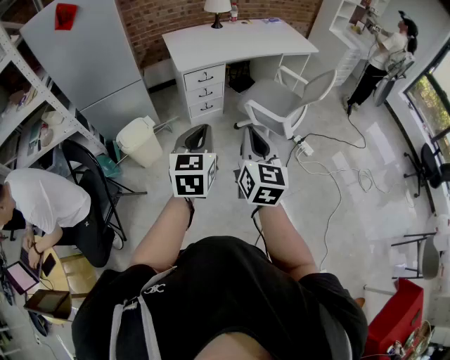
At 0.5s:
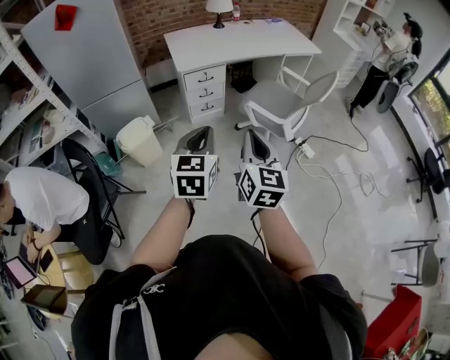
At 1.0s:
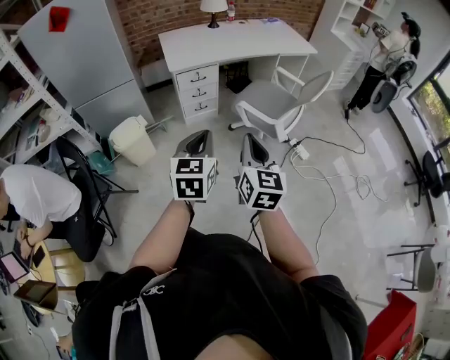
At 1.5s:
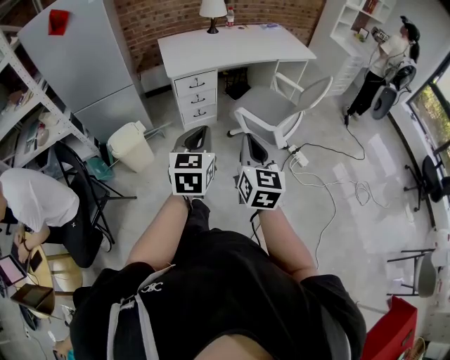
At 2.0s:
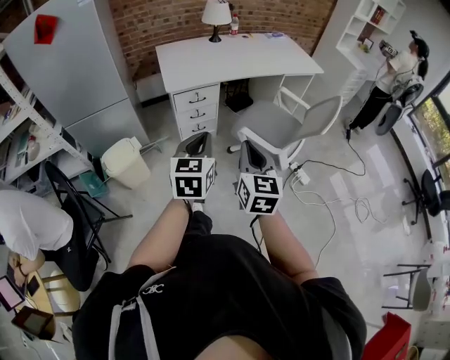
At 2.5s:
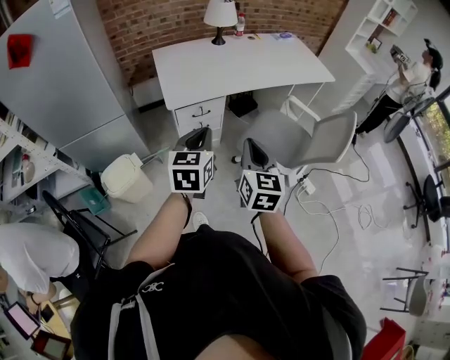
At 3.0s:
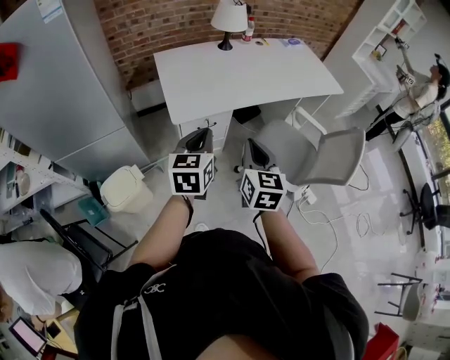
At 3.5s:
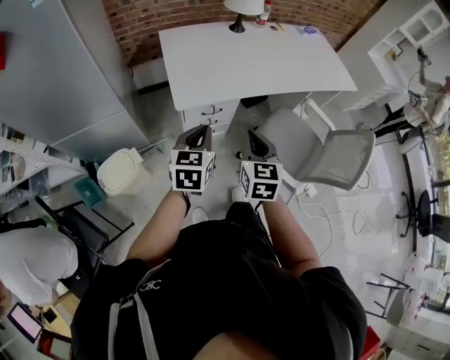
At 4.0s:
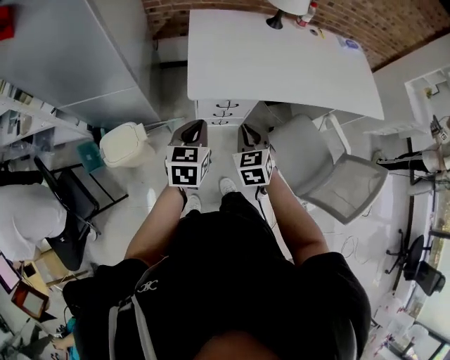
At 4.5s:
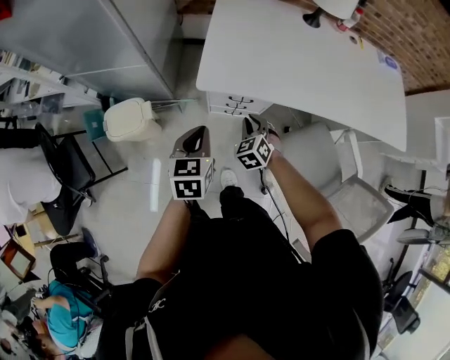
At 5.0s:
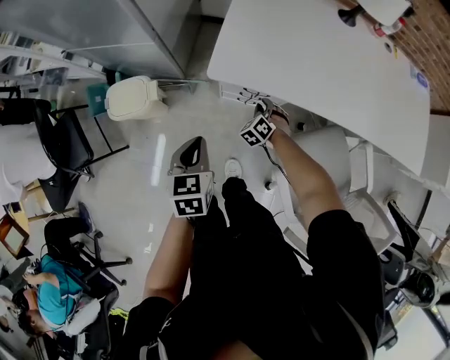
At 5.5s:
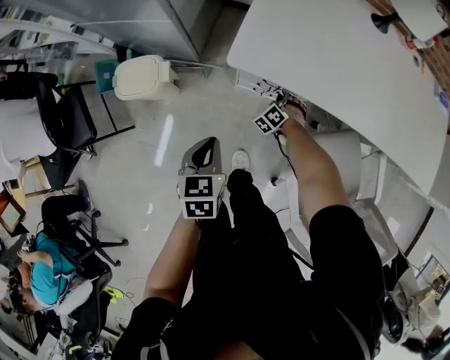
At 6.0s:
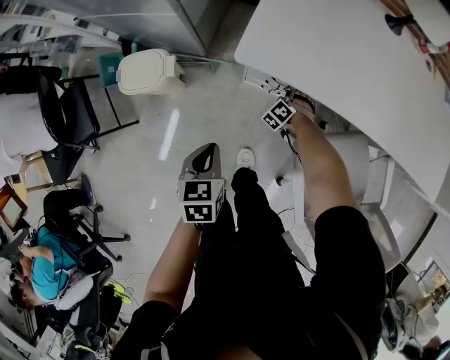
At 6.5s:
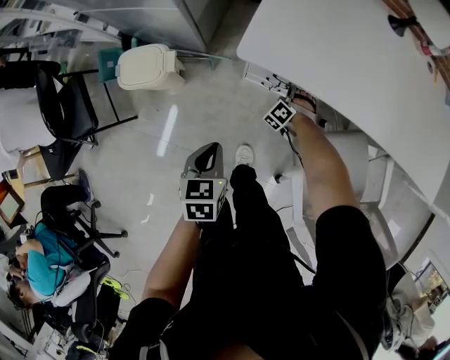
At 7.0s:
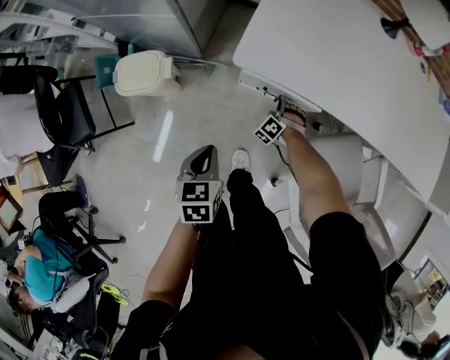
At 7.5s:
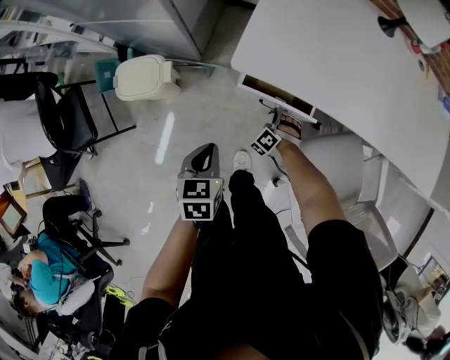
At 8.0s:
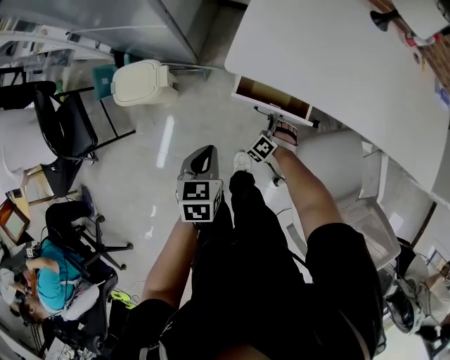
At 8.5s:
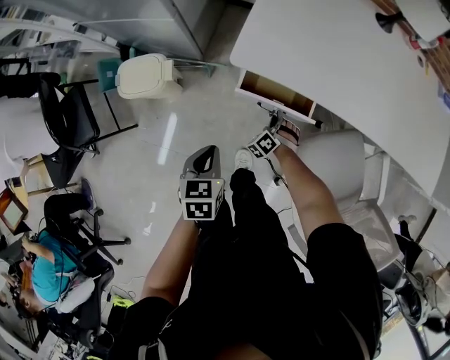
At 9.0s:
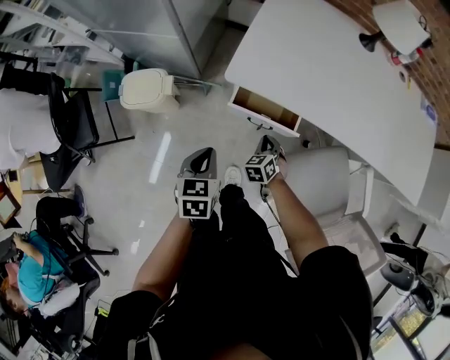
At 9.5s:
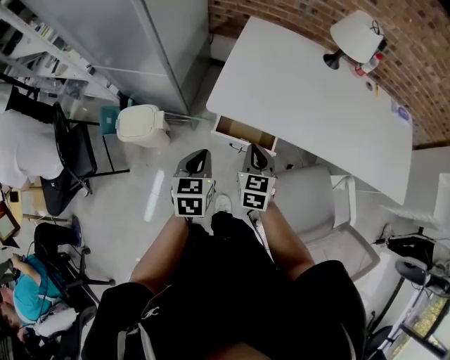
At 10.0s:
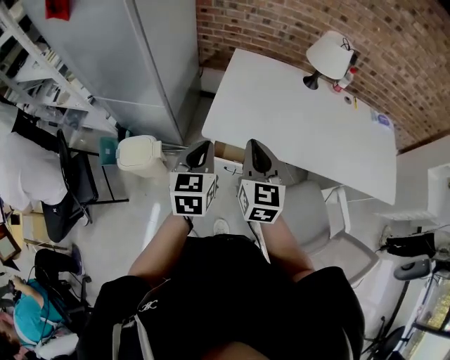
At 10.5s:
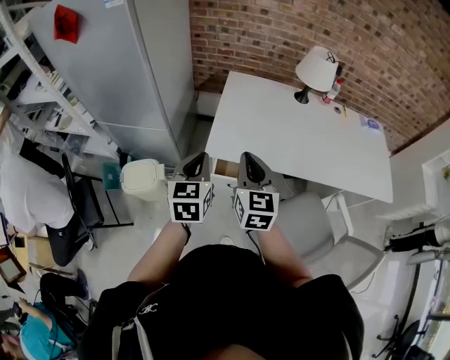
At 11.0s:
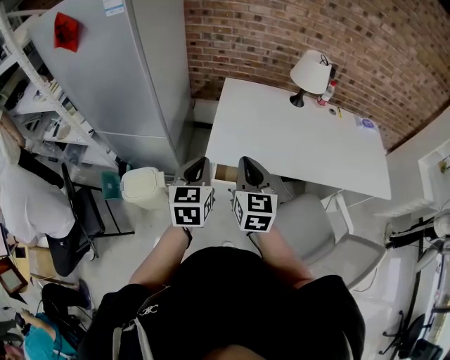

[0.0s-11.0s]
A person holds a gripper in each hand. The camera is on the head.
0.0s to 2.0s: Both grippers travel together forward, some 20 cm.
2.0s to 3.5s: The left gripper moves forward and to the left, roughly 35 cm; the right gripper heads forward, covering about 35 cm.
3.5s to 5.5s: The right gripper is displaced downward and forward by approximately 50 cm, and twists about 80 degrees counterclockwise, seen from behind. The left gripper is displaced downward by about 20 cm, and swivels roughly 50 degrees.
5.5s to 7.5s: The right gripper travels backward by some 5 cm.
7.5s to 9.0s: The right gripper moves upward and backward, about 15 cm, and twists approximately 40 degrees clockwise, seen from behind.
9.0s to 11.0s: The right gripper shifts approximately 40 cm upward, and angles its fingers upward, by some 40 degrees. The left gripper is displaced upward by approximately 25 cm, and turns by some 30 degrees.

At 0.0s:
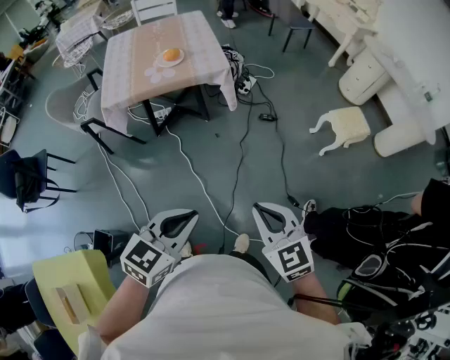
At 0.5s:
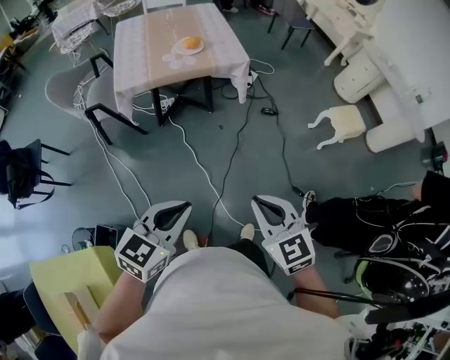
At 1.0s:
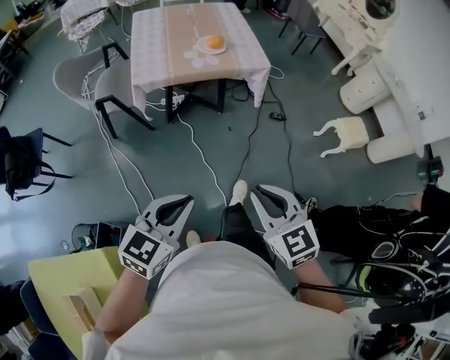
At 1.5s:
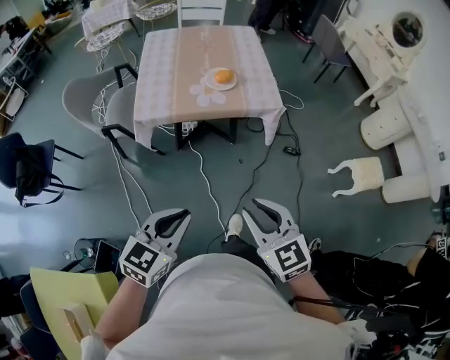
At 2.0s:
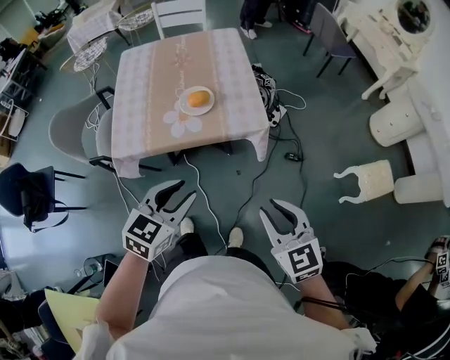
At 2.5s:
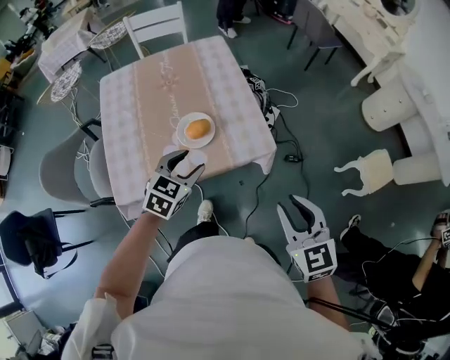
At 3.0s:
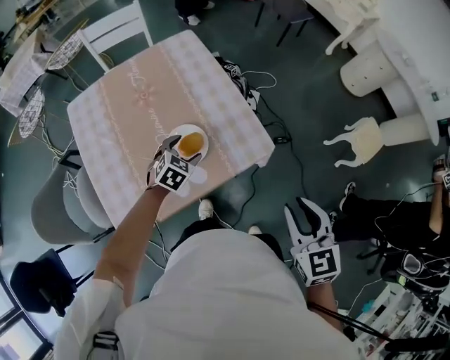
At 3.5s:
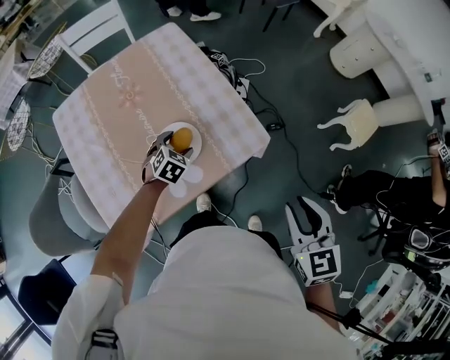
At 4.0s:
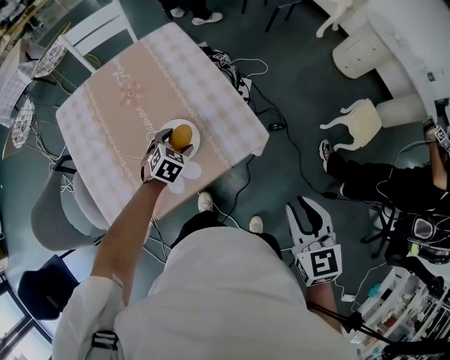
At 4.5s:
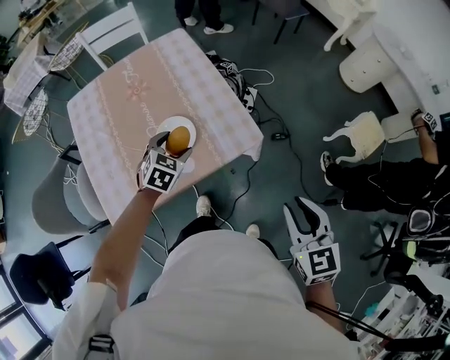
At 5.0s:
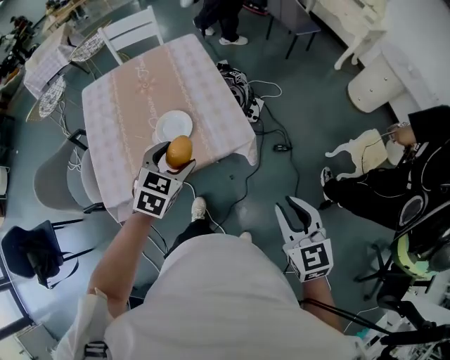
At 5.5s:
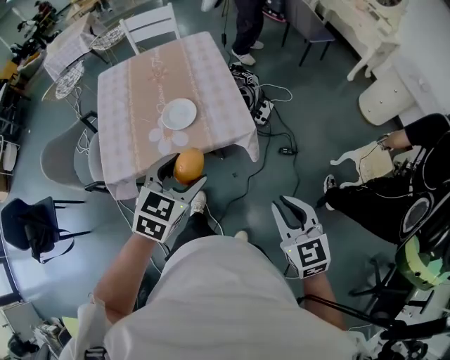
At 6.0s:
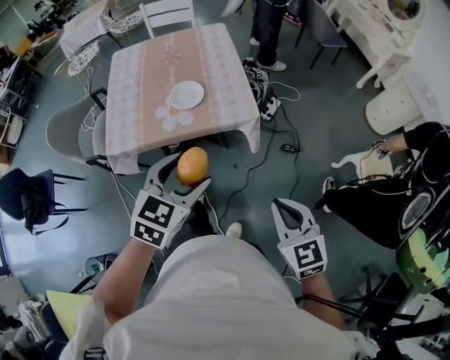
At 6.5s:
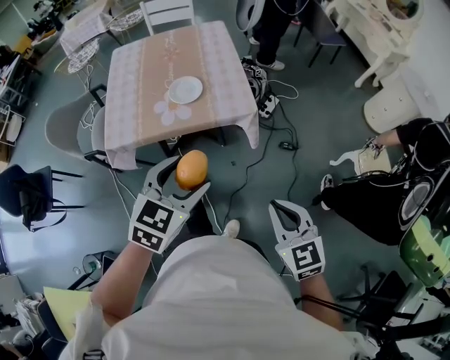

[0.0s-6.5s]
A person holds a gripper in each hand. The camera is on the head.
0.0s to 2.0s: Both grippers travel together forward, roughly 35 cm. The right gripper opens up; the left gripper opens its fingers.
2.0s to 4.5s: The right gripper ends up about 10 cm from where it was, and changes its angle by some 30 degrees, while the left gripper ends up roughly 35 cm from where it was, changes its angle by roughly 30 degrees, and opens its fingers.
4.5s to 6.5s: The right gripper moves backward and to the right, about 20 cm, turns by approximately 30 degrees, and closes its fingers; the left gripper travels backward, upward and to the right by some 40 cm, and turns by approximately 20 degrees.

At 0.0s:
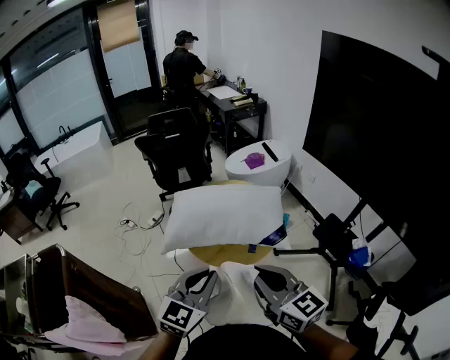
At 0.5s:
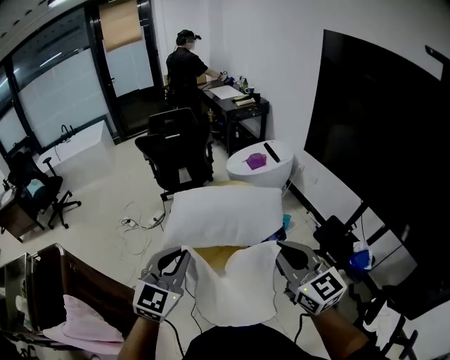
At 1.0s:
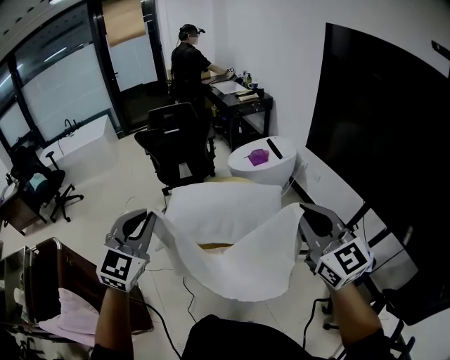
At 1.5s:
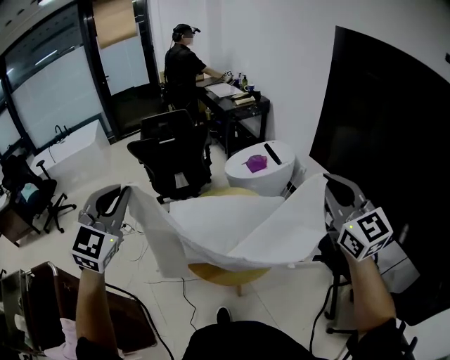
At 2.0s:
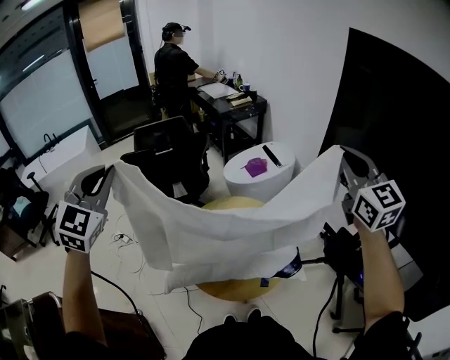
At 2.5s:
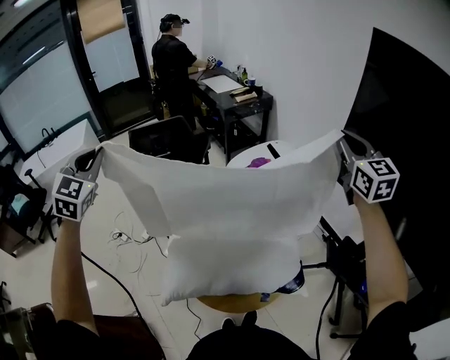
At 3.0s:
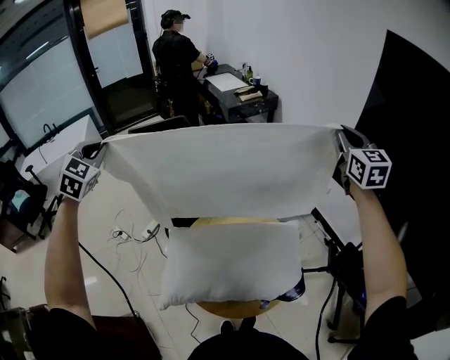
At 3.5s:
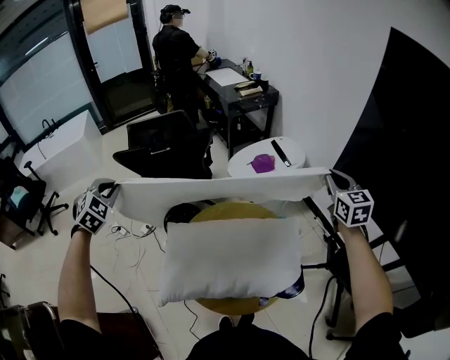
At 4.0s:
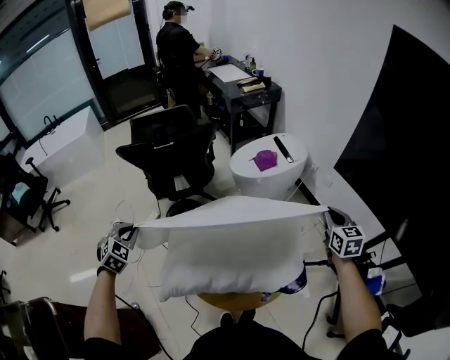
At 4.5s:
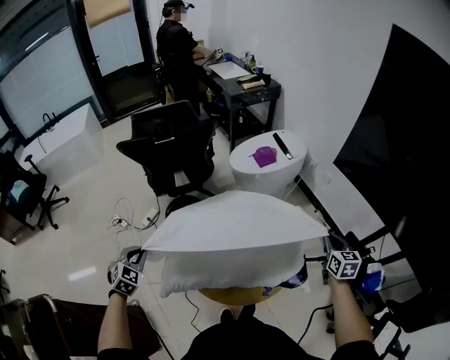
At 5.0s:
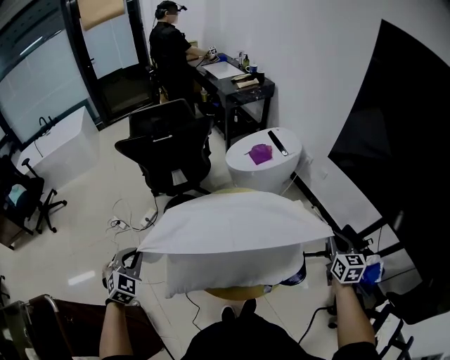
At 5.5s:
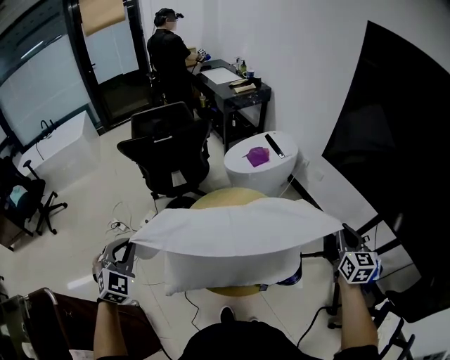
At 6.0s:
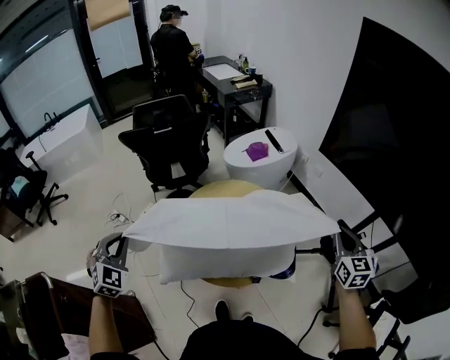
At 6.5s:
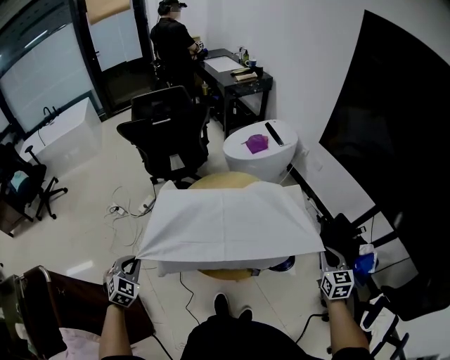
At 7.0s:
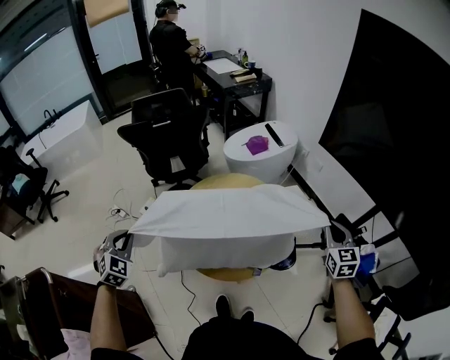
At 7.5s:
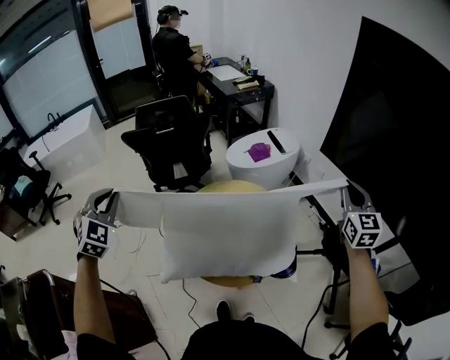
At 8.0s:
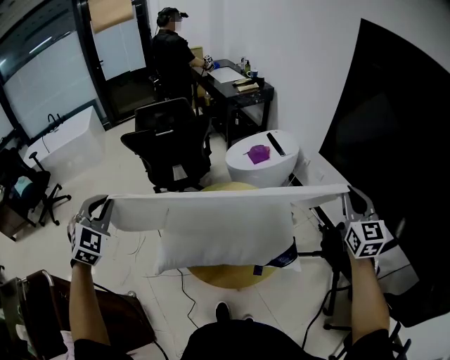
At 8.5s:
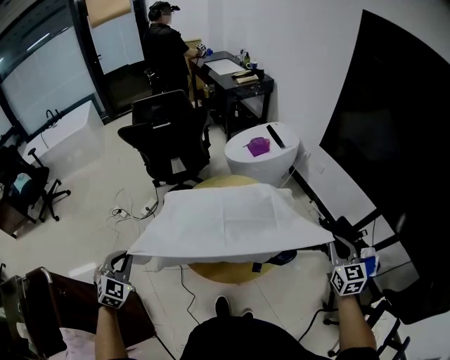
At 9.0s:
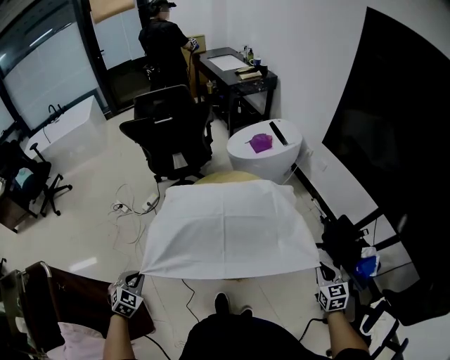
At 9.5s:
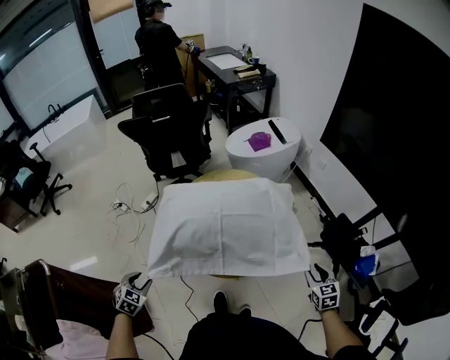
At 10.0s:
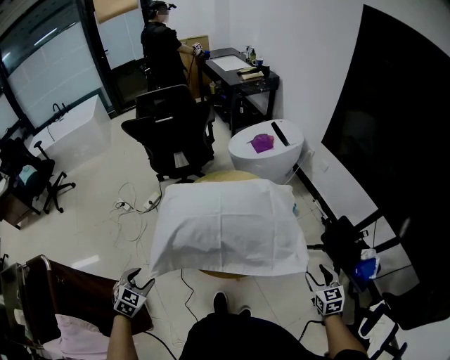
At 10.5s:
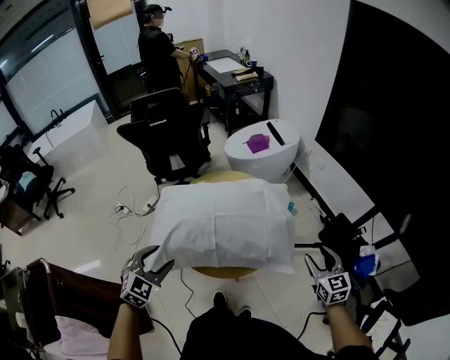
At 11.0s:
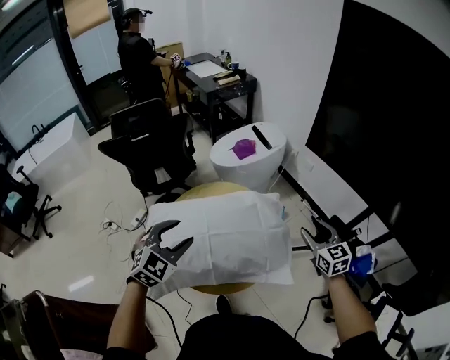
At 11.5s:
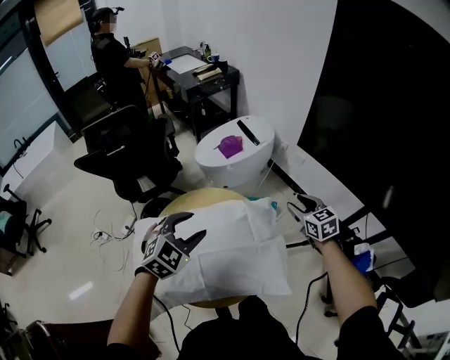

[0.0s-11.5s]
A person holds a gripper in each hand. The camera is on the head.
0.0s to 2.0s: The left gripper moves forward, to the left and upward, some 50 cm, and changes its angle by roughly 40 degrees; the right gripper heads forward, upward and to the right, covering roughly 40 cm, and changes its angle by approximately 40 degrees.
2.0s to 4.0s: Both grippers travel together downward, about 35 cm. The left gripper angles its fingers downward, by roughly 30 degrees, while the right gripper turns by approximately 30 degrees.
4.0s to 6.0s: The left gripper moves backward and upward, roughly 20 cm. Meanwhile the right gripper goes approximately 20 cm backward.
6.0s to 7.5s: Both grippers move upward and forward, roughly 15 cm.
7.5s to 9.5s: The two grippers go about 40 cm downward and backward. The right gripper points its fingers roughly 30 degrees further downward, and opens up; the left gripper angles its fingers downward, by roughly 30 degrees, and opens.
9.5s to 11.5s: The left gripper heads forward, to the right and upward, covering some 50 cm, and changes its angle by some 40 degrees; the right gripper goes some 30 cm forward.
